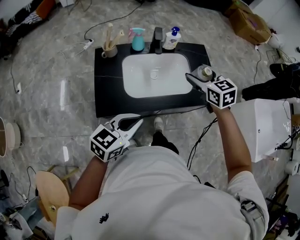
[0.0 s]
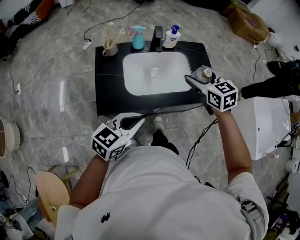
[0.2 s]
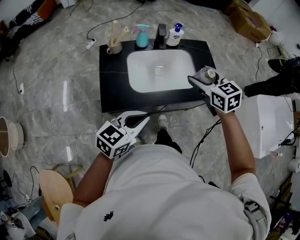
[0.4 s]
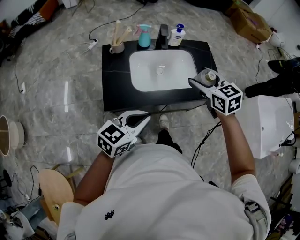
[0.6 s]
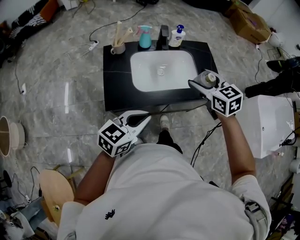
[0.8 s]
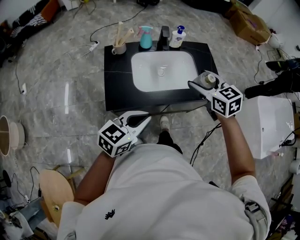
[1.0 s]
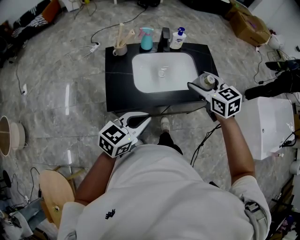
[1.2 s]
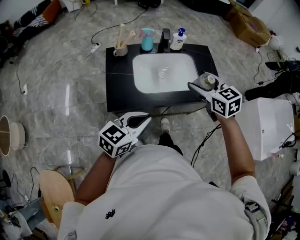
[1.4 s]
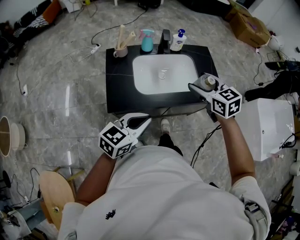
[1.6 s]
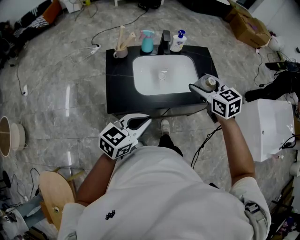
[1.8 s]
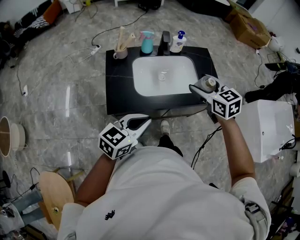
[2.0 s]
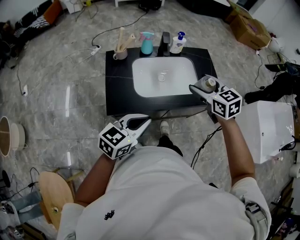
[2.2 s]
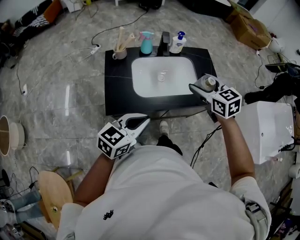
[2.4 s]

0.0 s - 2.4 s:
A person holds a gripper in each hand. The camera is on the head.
0.0 s - 1.2 s: The left gripper travels backward by roughly 5 cm. The right gripper heads backward, covering approximately 10 cm.
1.2 s - 2.4 s: The grippers move only a little.

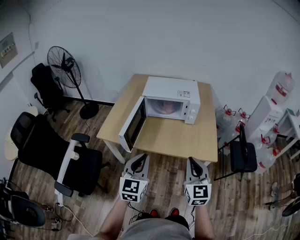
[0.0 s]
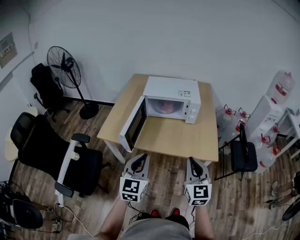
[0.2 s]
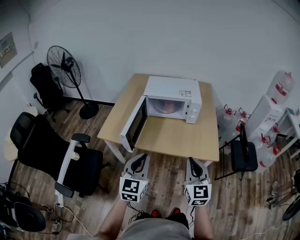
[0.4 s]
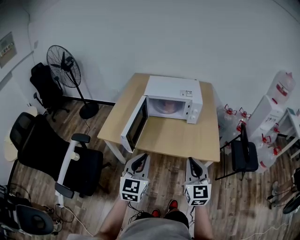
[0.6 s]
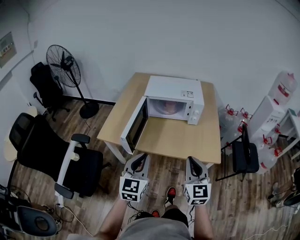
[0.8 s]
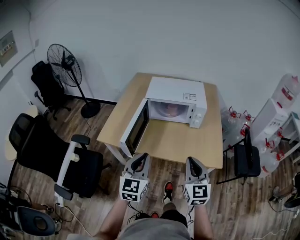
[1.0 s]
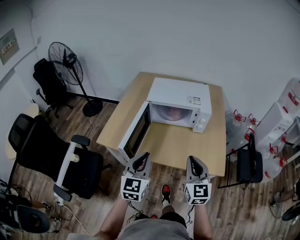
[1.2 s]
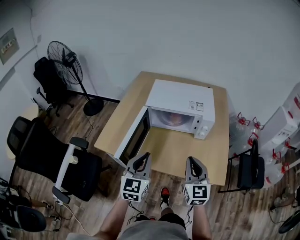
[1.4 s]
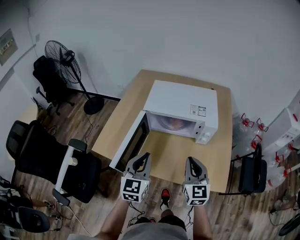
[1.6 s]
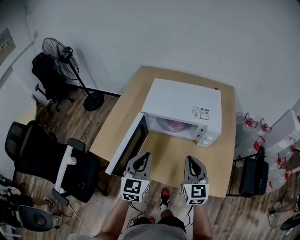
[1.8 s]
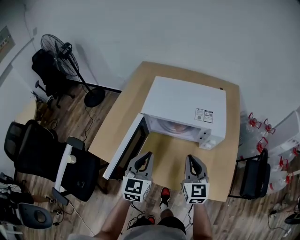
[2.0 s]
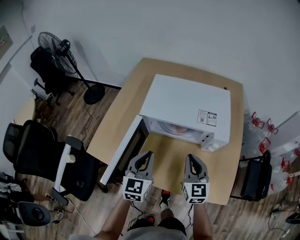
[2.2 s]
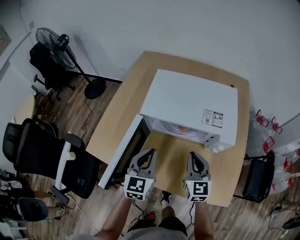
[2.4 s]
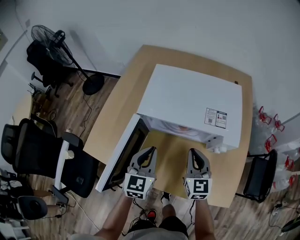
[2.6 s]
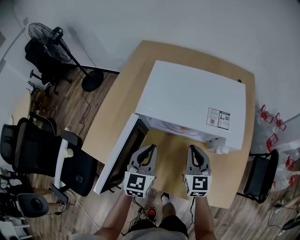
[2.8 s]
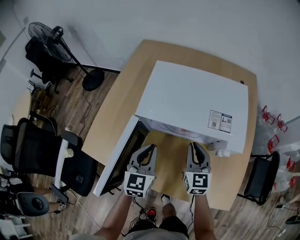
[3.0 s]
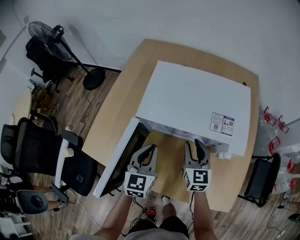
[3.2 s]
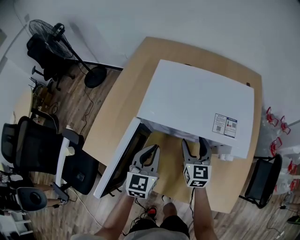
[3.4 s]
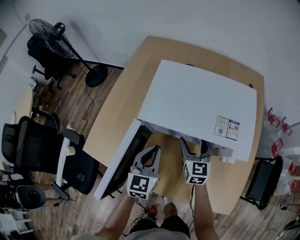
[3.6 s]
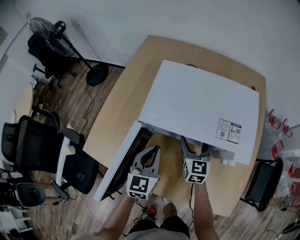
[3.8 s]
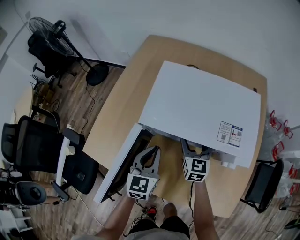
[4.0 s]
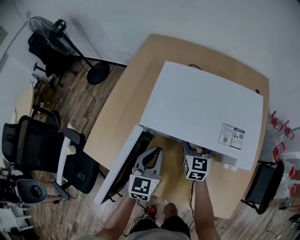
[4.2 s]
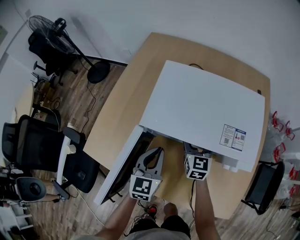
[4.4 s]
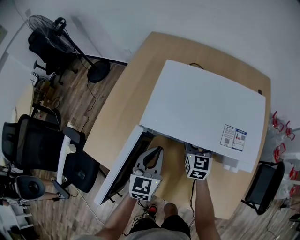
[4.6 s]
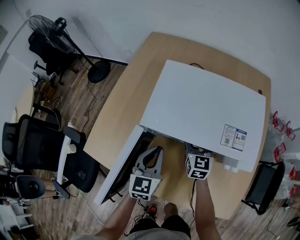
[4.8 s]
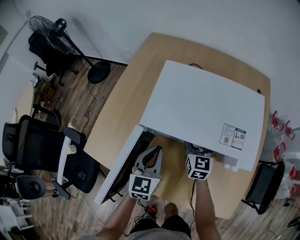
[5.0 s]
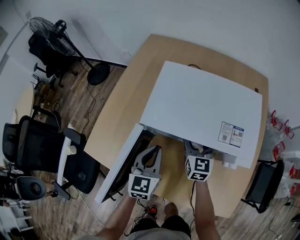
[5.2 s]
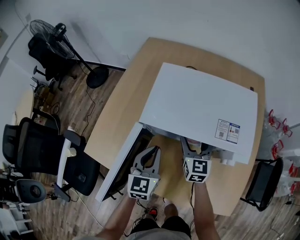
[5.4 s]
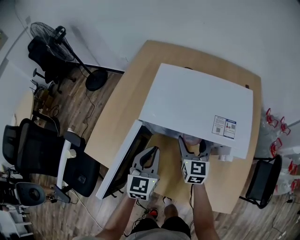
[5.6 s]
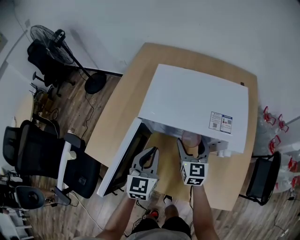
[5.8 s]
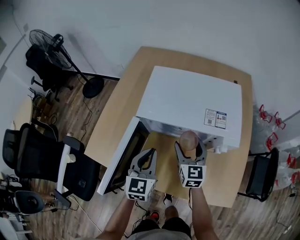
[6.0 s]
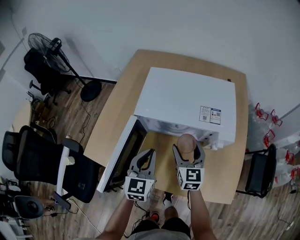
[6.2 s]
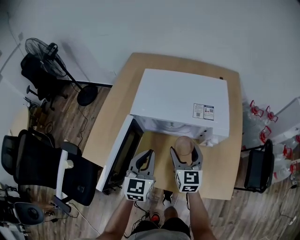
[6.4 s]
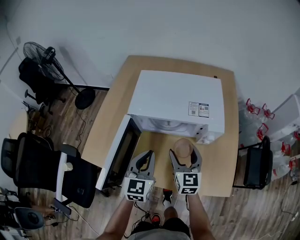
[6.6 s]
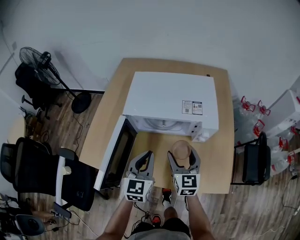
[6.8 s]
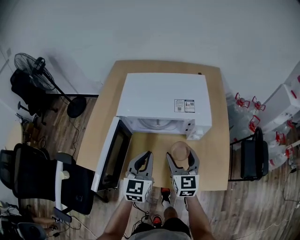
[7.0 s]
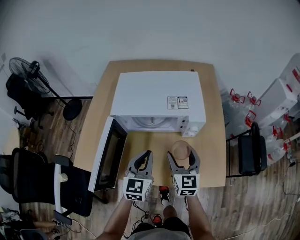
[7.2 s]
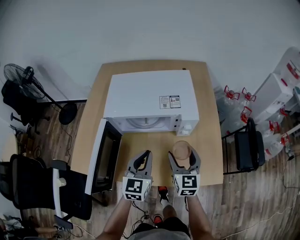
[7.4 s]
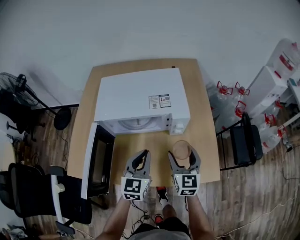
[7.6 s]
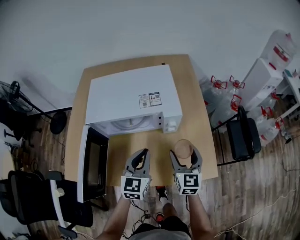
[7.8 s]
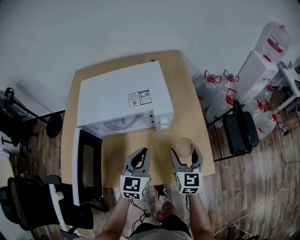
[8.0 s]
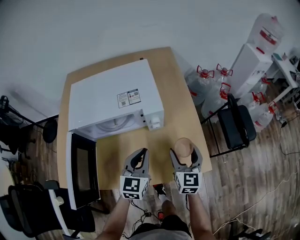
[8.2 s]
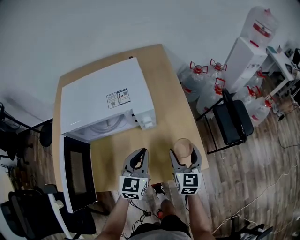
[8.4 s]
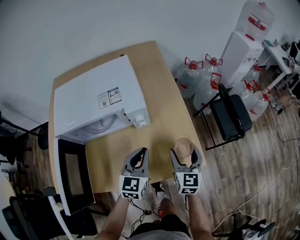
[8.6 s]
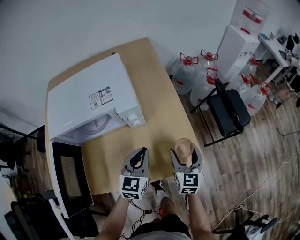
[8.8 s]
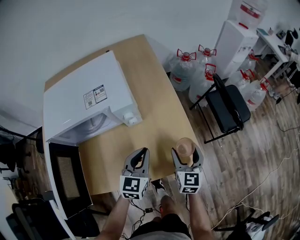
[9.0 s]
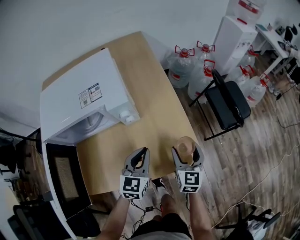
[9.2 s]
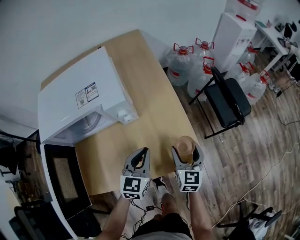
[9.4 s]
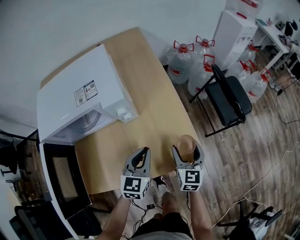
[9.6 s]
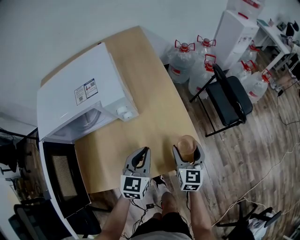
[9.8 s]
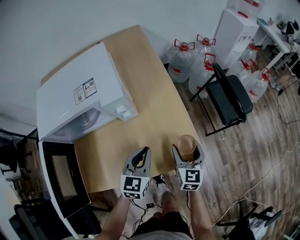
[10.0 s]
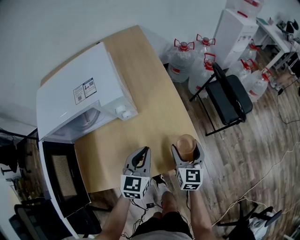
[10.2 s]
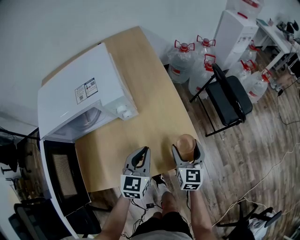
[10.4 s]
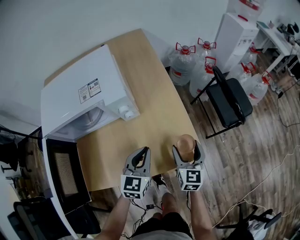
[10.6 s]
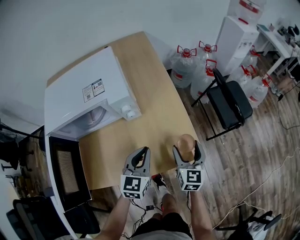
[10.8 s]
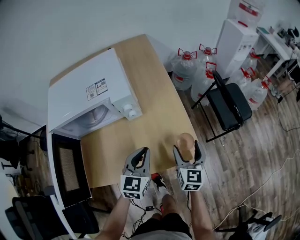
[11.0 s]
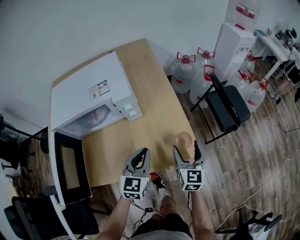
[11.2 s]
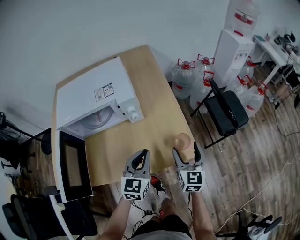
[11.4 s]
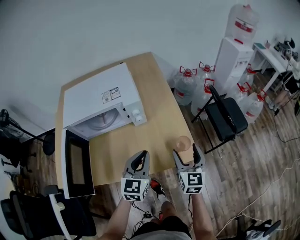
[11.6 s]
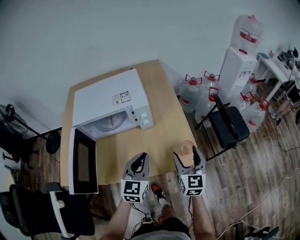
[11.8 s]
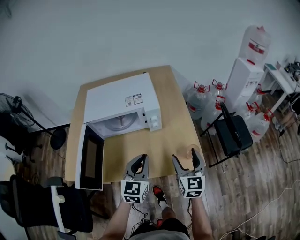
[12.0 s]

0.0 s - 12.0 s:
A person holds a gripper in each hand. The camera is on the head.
0.0 s - 1.6 s: Both grippers move forward, approximately 25 cm.
1.6 s - 3.0 s: Both grippers move forward and downward, about 25 cm.
3.0 s - 4.4 s: The right gripper shifts approximately 10 cm forward and downward, and opens up.
4.4 s - 6.0 s: The two grippers go about 10 cm backward and upward.
6.0 s - 7.6 s: The left gripper is displaced to the right by roughly 15 cm. Meanwhile the right gripper moves to the right and backward, some 20 cm.
7.6 s - 9.0 s: Both grippers travel together to the right and downward, roughly 20 cm. The right gripper swivels about 20 degrees.
9.0 s - 10.4 s: The grippers stay close to where they were, moving slightly.
10.4 s - 12.0 s: The left gripper heads upward, backward and to the left, covering roughly 20 cm. The right gripper shifts approximately 15 cm upward.

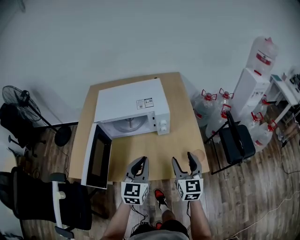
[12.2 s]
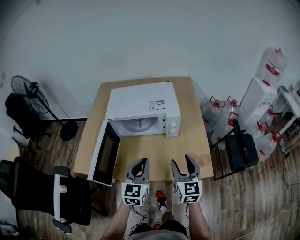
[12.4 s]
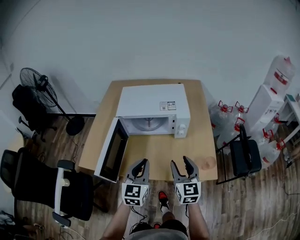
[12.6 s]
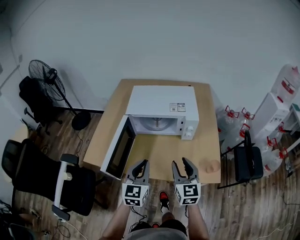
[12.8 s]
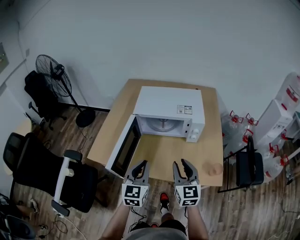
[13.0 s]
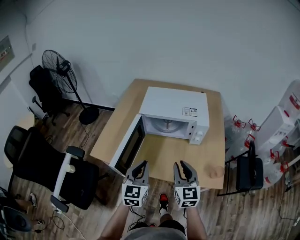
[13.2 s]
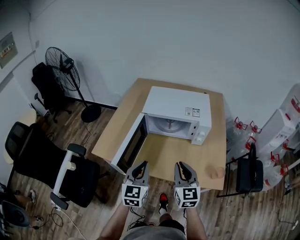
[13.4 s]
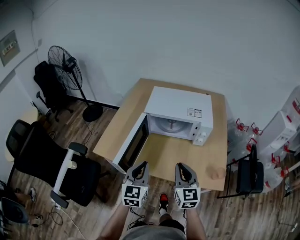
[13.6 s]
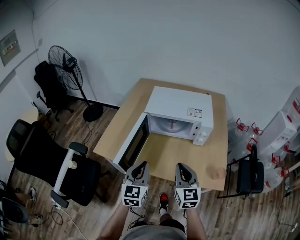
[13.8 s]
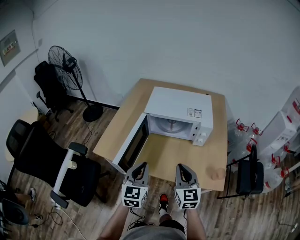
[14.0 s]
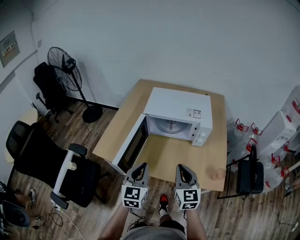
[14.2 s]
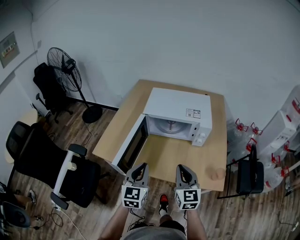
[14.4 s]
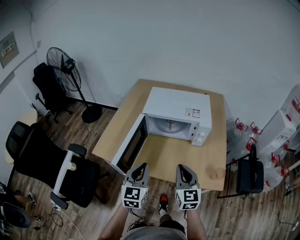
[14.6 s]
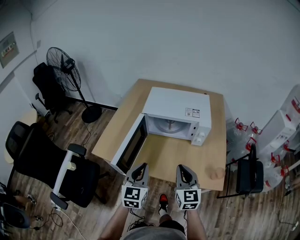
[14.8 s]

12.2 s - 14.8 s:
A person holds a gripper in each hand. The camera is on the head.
12.2 s - 13.4 s: Both grippers travel together to the left, about 15 cm. The right gripper swivels approximately 20 degrees, and closes its fingers.
13.4 s - 14.8 s: Neither gripper changes place.

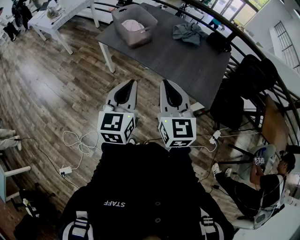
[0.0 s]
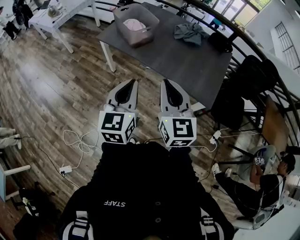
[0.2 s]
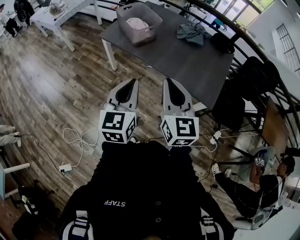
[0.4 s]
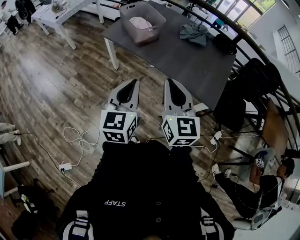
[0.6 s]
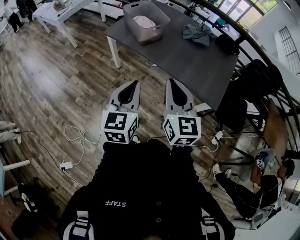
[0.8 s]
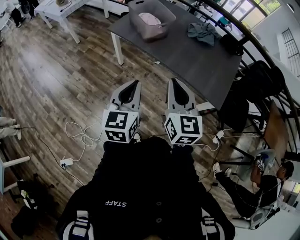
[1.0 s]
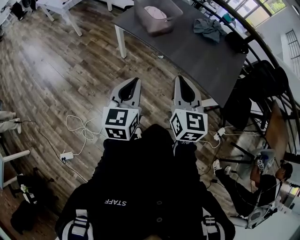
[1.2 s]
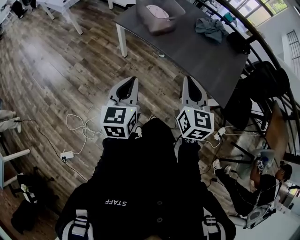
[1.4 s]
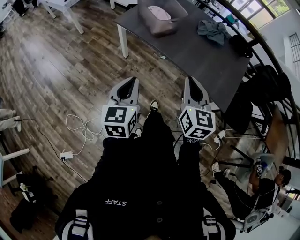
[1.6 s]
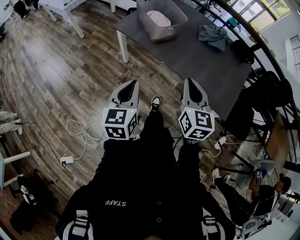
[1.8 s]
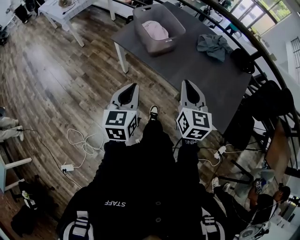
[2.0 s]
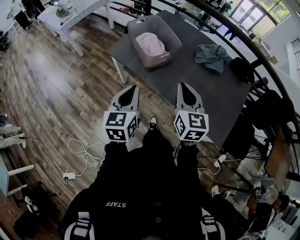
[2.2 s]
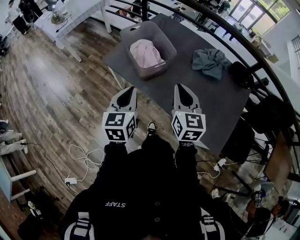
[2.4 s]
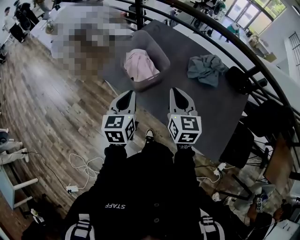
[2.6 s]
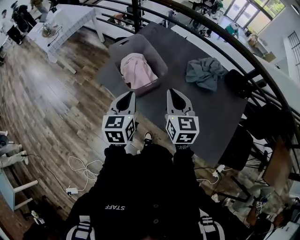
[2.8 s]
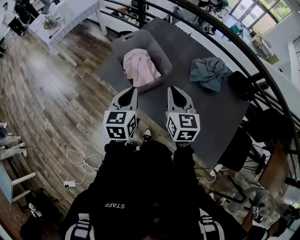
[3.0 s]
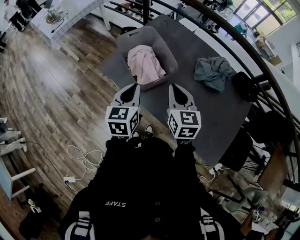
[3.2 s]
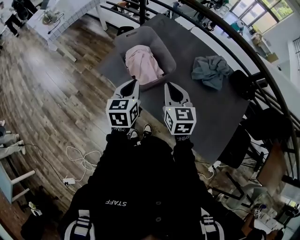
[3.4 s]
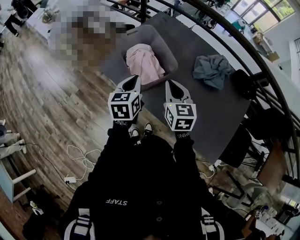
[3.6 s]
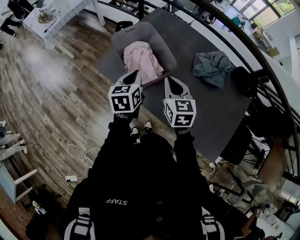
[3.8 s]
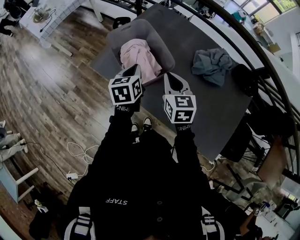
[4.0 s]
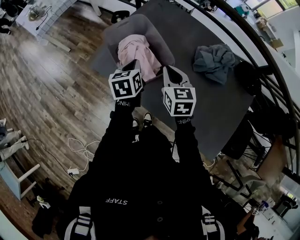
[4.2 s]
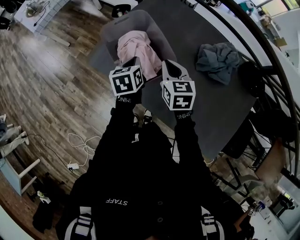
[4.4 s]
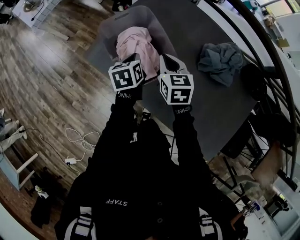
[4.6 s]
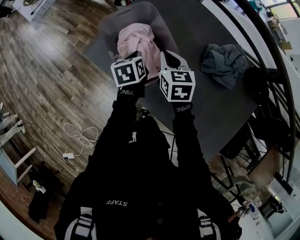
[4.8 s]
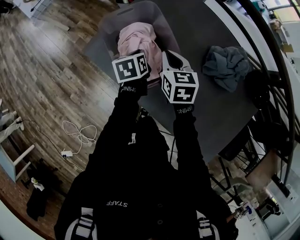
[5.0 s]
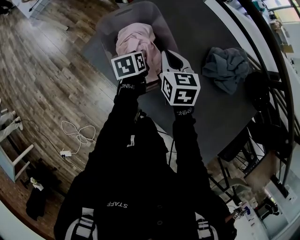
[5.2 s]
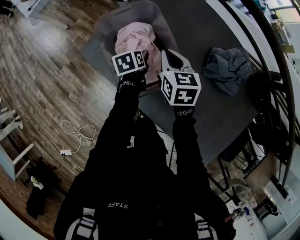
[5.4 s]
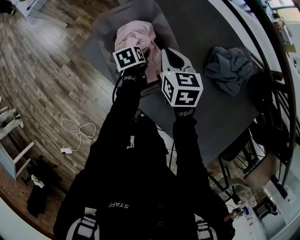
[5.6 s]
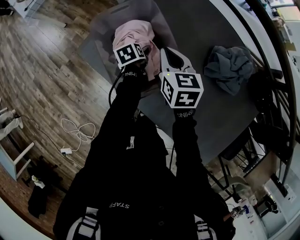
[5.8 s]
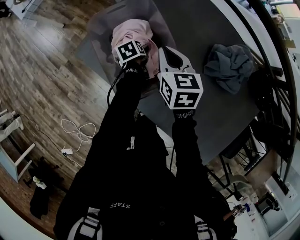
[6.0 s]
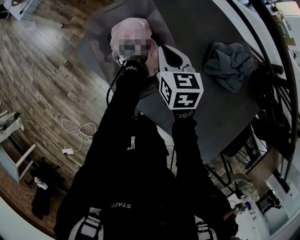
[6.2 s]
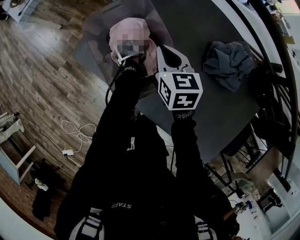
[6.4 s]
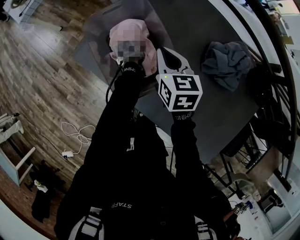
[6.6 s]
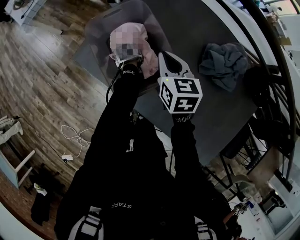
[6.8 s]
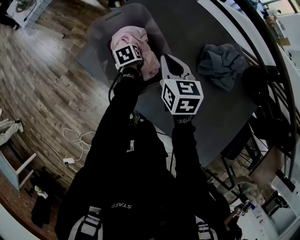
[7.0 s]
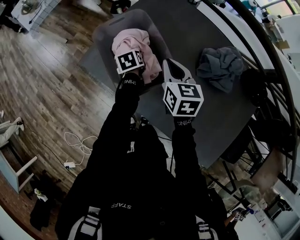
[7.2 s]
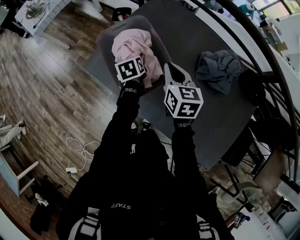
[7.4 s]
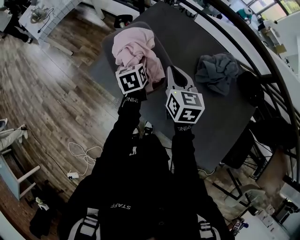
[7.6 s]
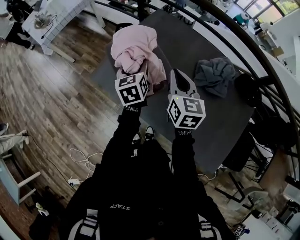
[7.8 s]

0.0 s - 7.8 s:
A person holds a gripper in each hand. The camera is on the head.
0.0 s - 1.6 s: The right gripper heads downward and forward, covering some 10 cm; the left gripper is displaced to the left and downward by some 15 cm.
1.6 s - 3.2 s: Both grippers are carried forward, about 40 cm.
3.2 s - 4.6 s: Both grippers travel together forward and downward, some 25 cm. The left gripper turns by approximately 30 degrees.
4.6 s - 6.2 s: The left gripper travels downward by approximately 20 cm, changes its angle by about 30 degrees, and opens its fingers; the right gripper moves forward, some 5 cm.
6.2 s - 7.8 s: The right gripper goes roughly 20 cm upward and backward, and turns by about 20 degrees. Meanwhile the left gripper shifts approximately 30 cm upward, tilts its fingers about 40 degrees upward, and closes up.
